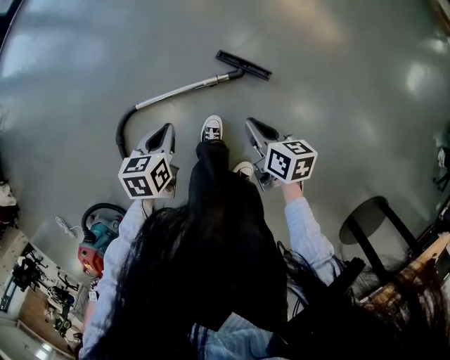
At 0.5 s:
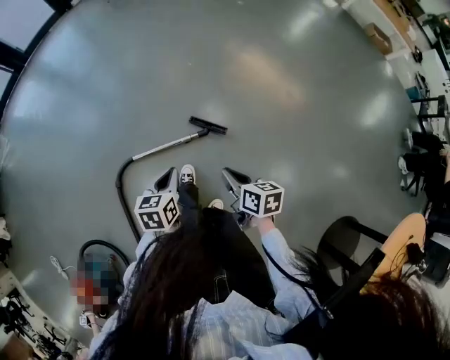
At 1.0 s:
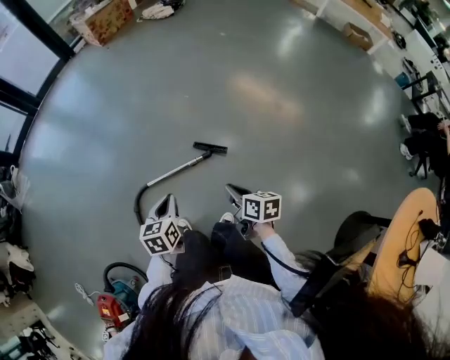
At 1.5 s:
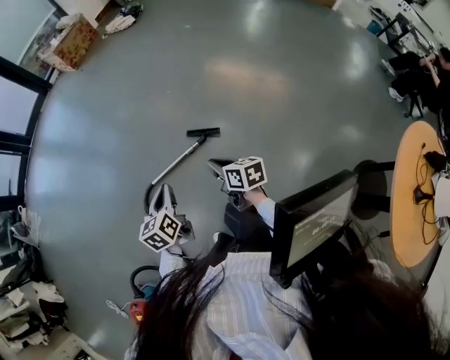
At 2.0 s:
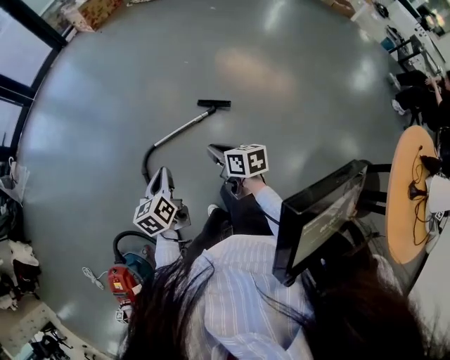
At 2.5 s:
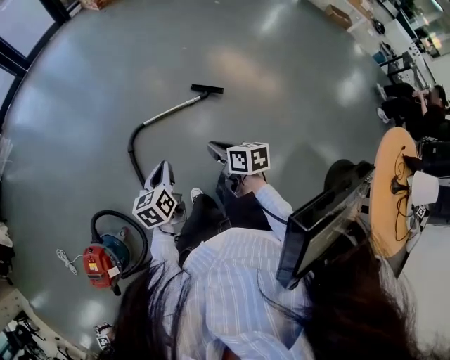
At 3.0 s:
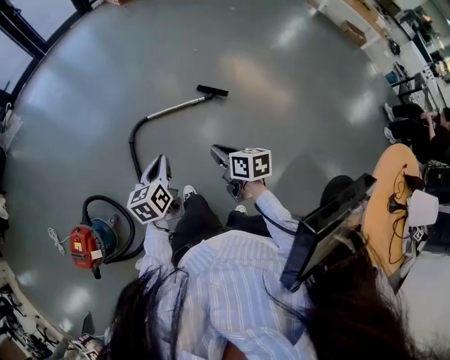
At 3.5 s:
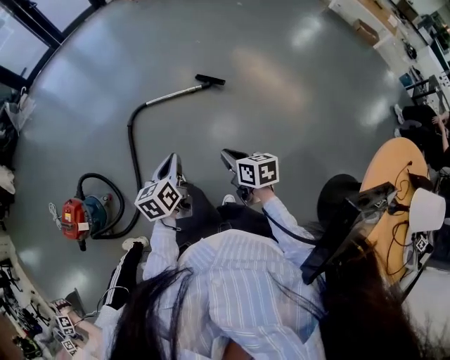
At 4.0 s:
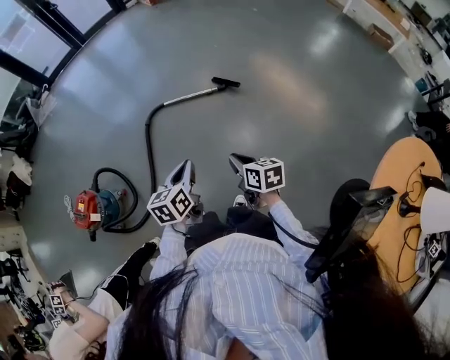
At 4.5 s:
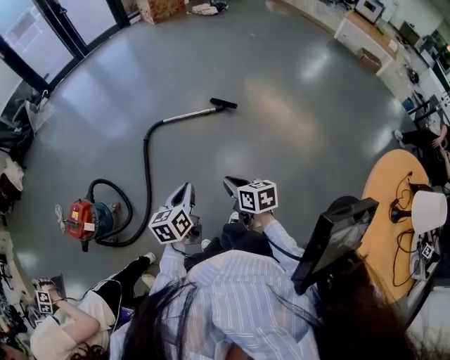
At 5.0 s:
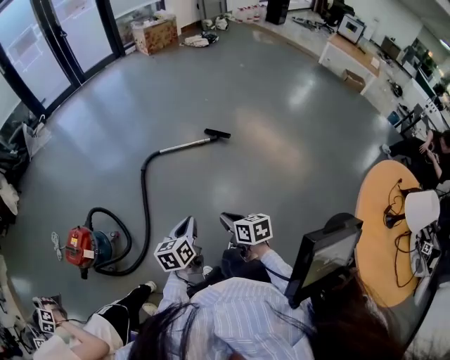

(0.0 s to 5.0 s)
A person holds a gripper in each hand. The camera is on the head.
0.0 s - 2.5 s: The two grippers travel together, backward and to the left, approximately 40 cm. Both grippers move upward, approximately 40 cm. The left gripper rotates approximately 20 degrees.
2.5 s - 5.0 s: The pair of grippers is taken backward, roughly 40 cm.

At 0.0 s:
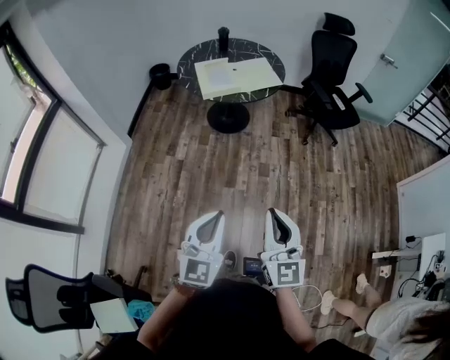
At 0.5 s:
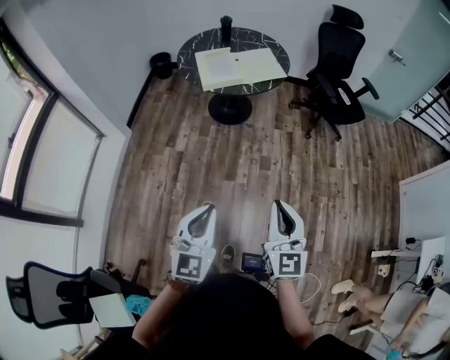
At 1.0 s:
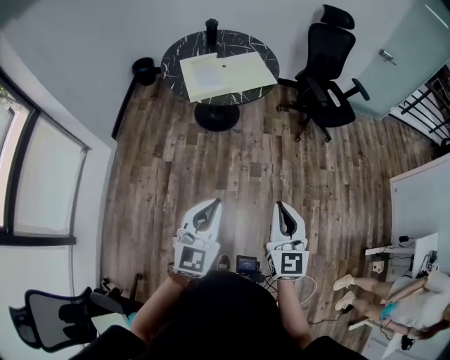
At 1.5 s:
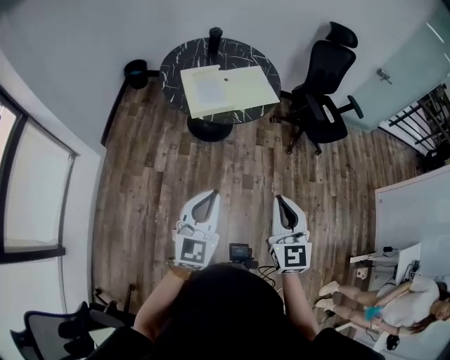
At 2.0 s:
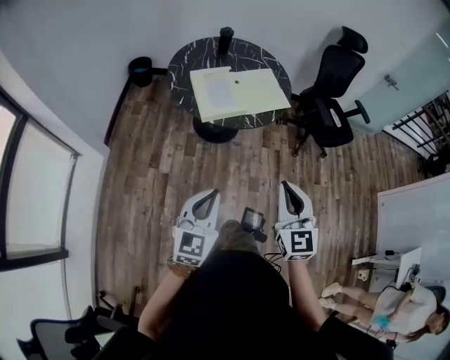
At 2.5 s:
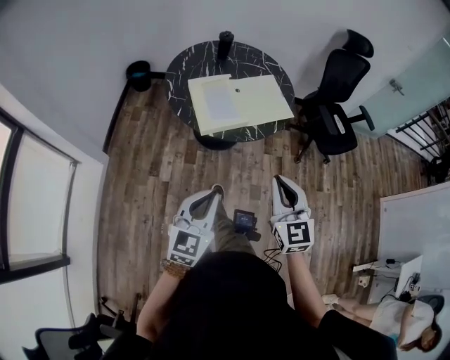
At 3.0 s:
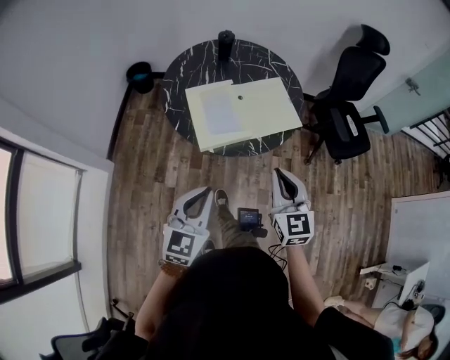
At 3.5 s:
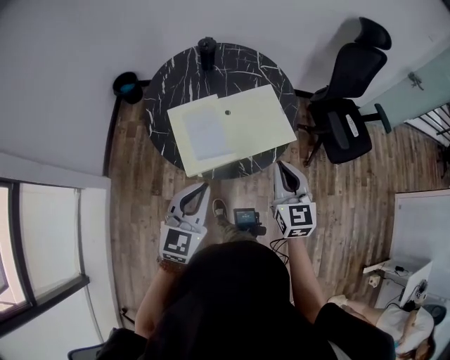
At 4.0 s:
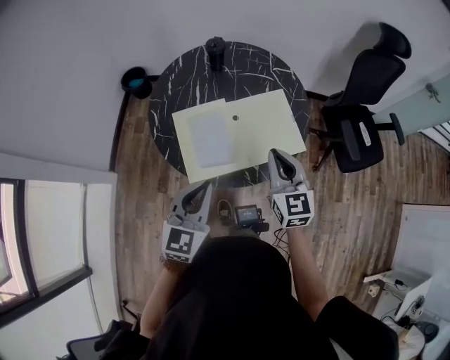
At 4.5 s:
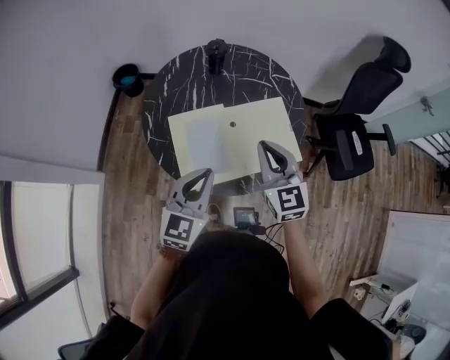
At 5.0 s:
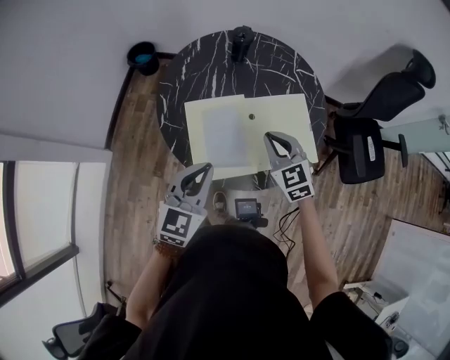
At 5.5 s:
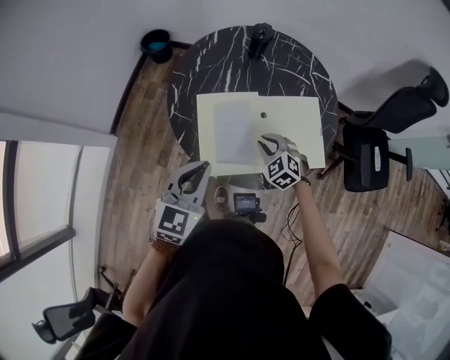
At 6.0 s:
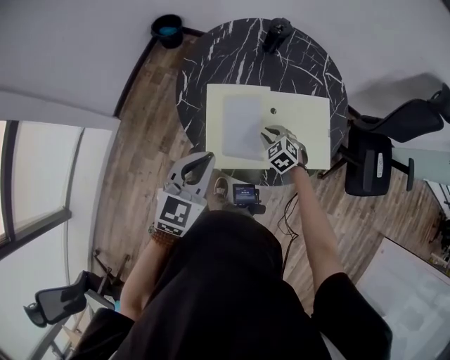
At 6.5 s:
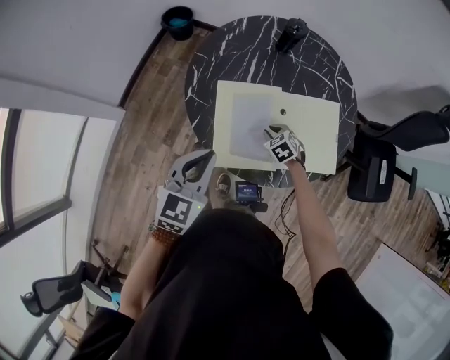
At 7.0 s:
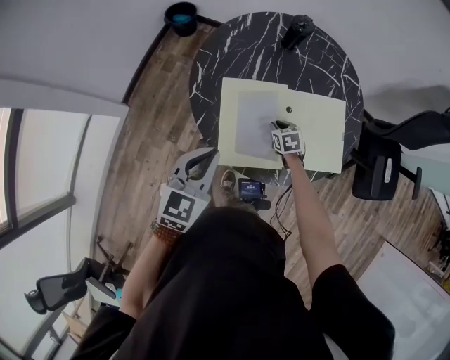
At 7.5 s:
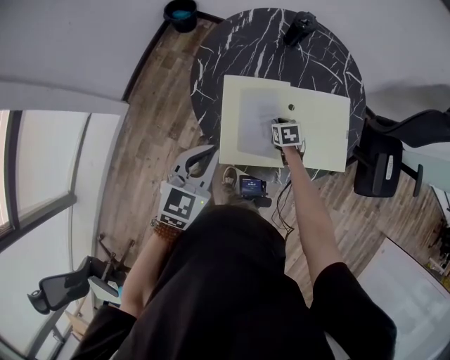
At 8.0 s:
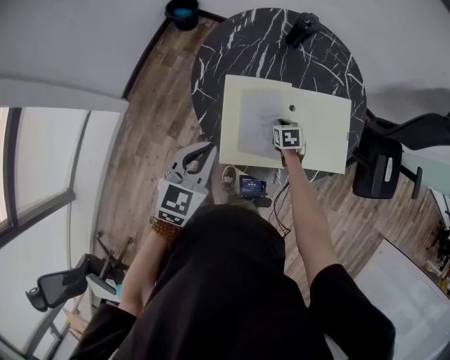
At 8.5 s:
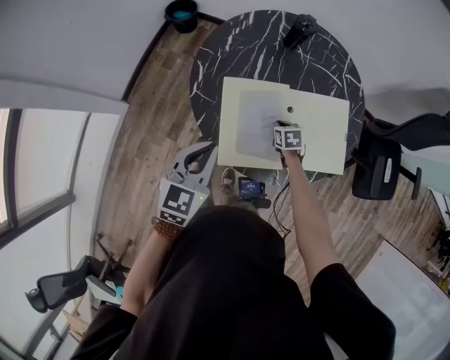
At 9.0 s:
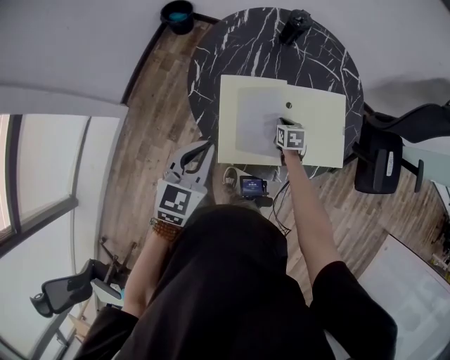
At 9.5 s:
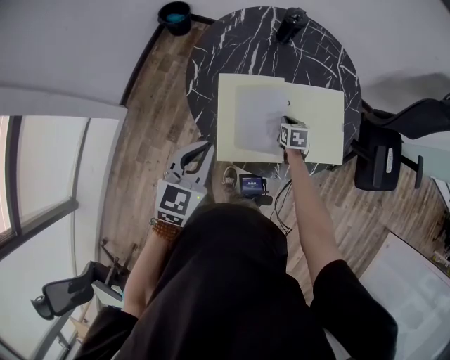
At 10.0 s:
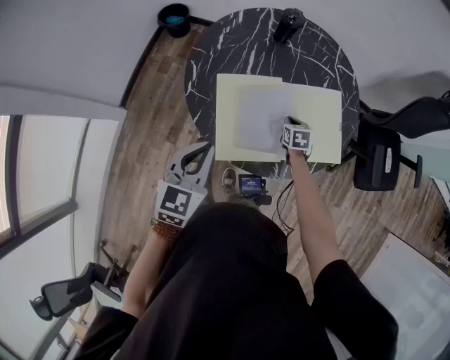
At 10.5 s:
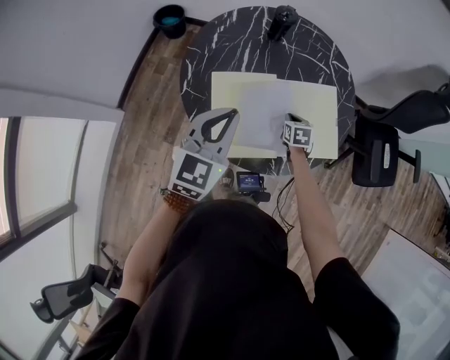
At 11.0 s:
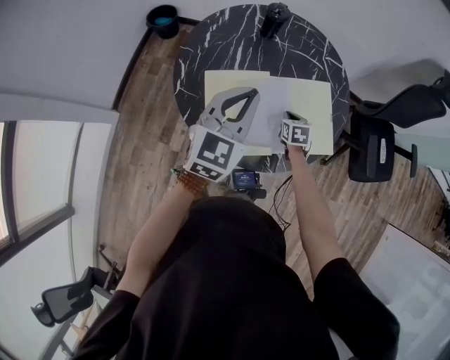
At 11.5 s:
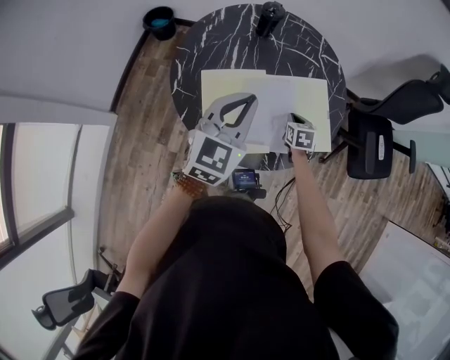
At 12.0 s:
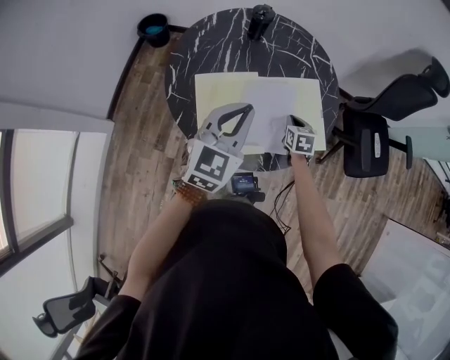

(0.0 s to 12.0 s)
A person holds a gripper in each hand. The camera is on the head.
0.0 s - 2.0 s: The right gripper moves forward, some 35 cm. Meanwhile the left gripper heads forward and to the left, covering about 35 cm.
2.0 s - 4.0 s: The two grippers travel together, forward, about 50 cm.
4.0 s - 6.0 s: The left gripper moves to the left, forward and downward, approximately 15 cm; the right gripper heads downward, forward and to the left, covering some 35 cm, and tips its fingers downward by some 40 degrees.
6.0 s - 8.0 s: The right gripper heads downward, covering some 10 cm, and twists roughly 40 degrees clockwise, seen from behind. The left gripper ends up roughly 5 cm from where it was.
8.0 s - 10.0 s: The right gripper is displaced to the right by some 5 cm.
10.0 s - 12.0 s: The right gripper goes roughly 10 cm to the right and upward, while the left gripper is displaced to the right, forward and upward by approximately 15 cm.

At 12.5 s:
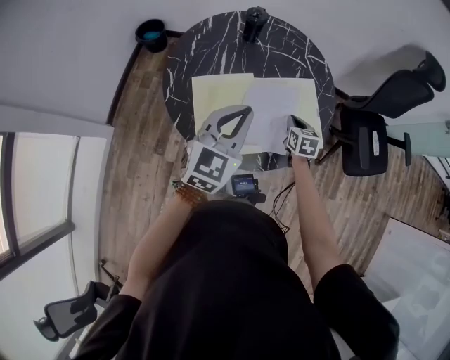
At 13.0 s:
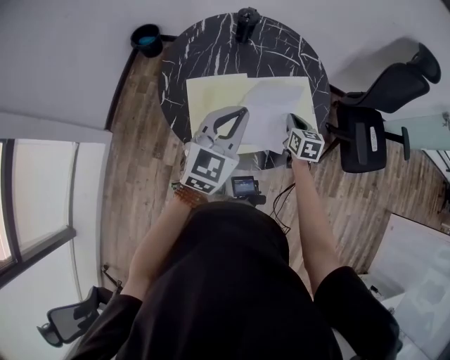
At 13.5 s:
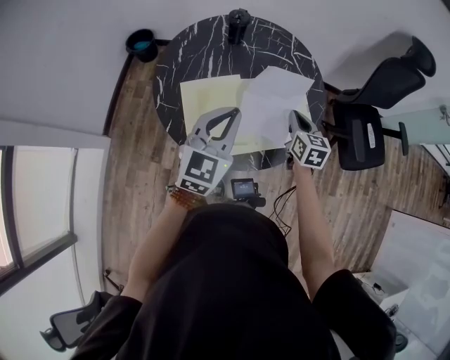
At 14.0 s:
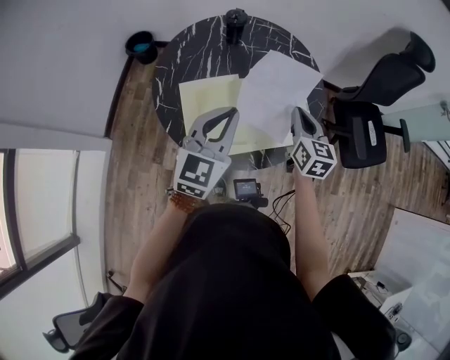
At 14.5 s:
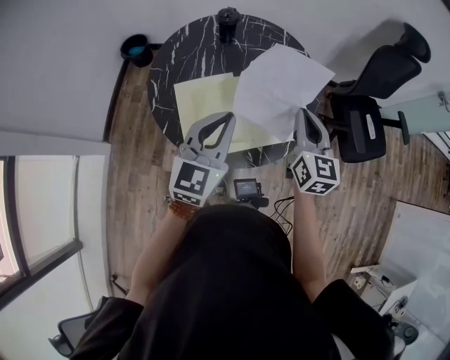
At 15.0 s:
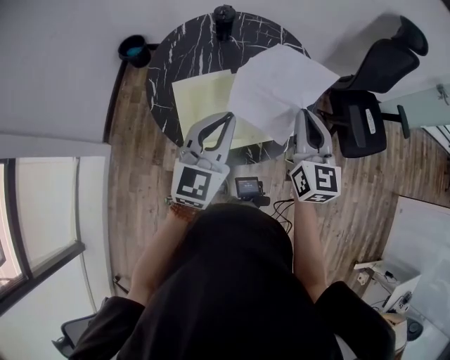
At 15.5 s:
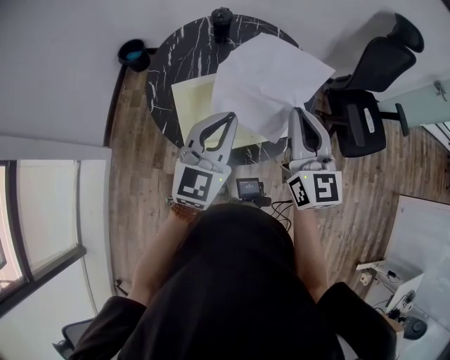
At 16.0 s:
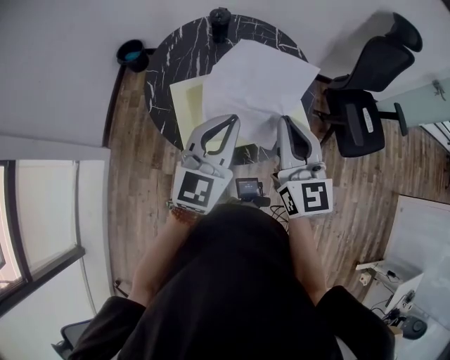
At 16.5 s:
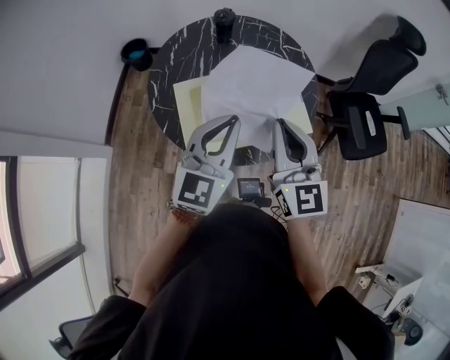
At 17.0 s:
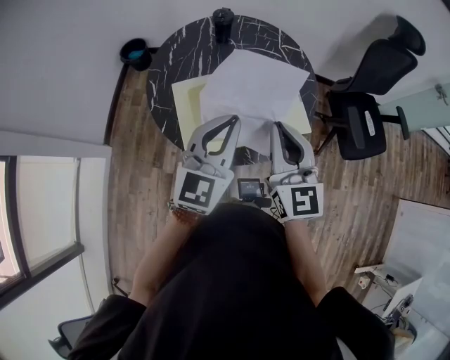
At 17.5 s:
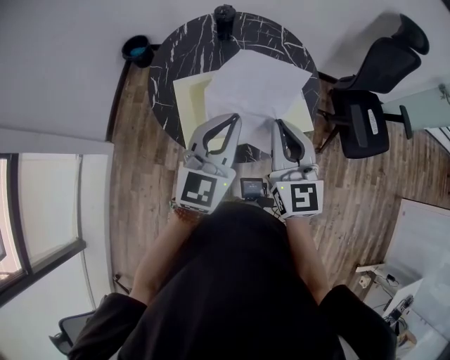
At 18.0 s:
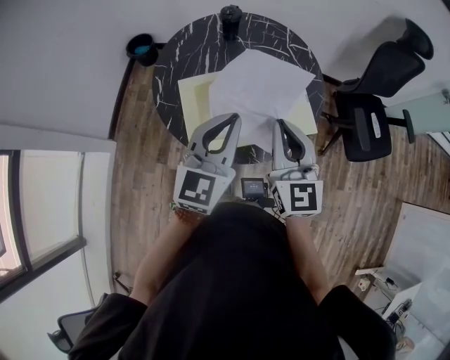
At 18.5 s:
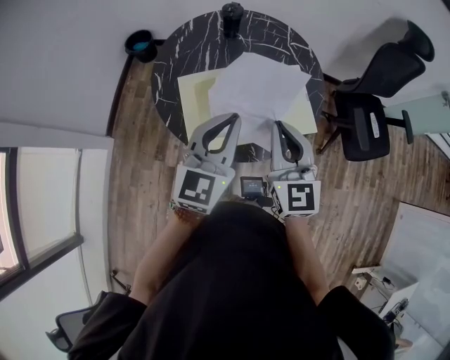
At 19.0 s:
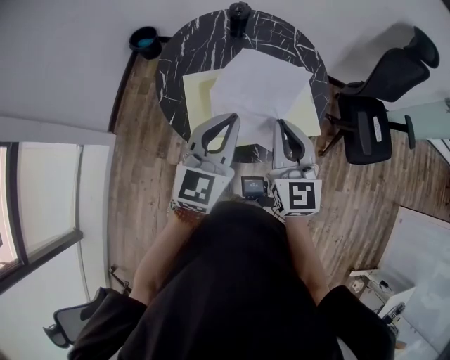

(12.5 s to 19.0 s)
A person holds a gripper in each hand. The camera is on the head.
12.5 s - 14.5 s: The right gripper shifts about 25 cm upward, and points its fingers about 30 degrees further upward.
14.5 s - 17.0 s: The right gripper moves backward, upward and to the left, some 10 cm. Meanwhile the left gripper shifts by approximately 5 cm.
17.0 s - 19.0 s: The grippers move only a little.

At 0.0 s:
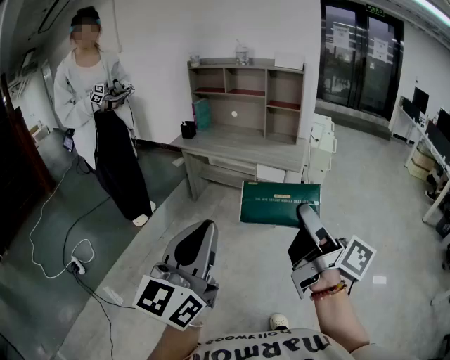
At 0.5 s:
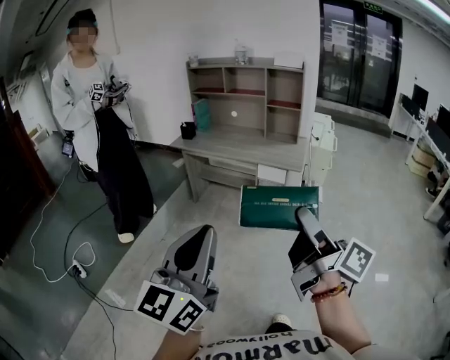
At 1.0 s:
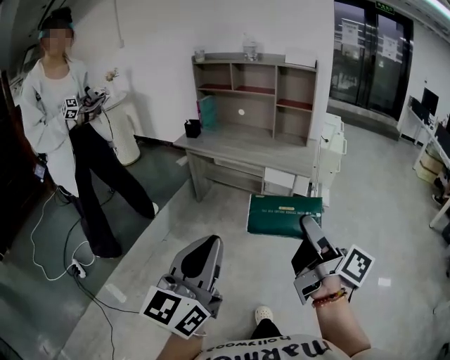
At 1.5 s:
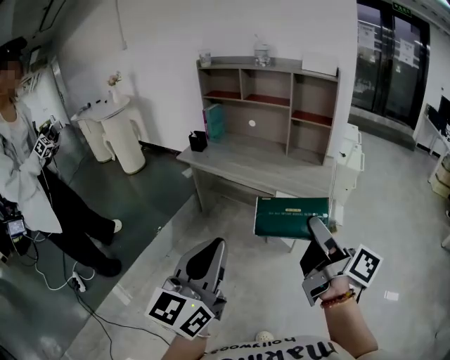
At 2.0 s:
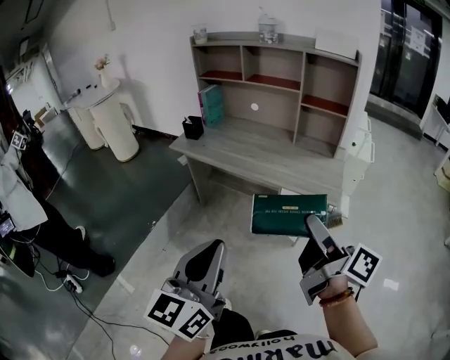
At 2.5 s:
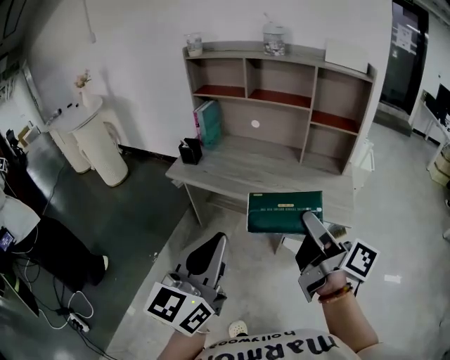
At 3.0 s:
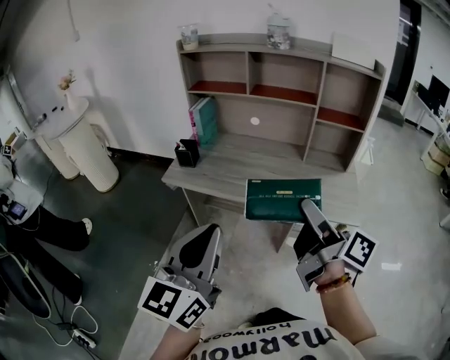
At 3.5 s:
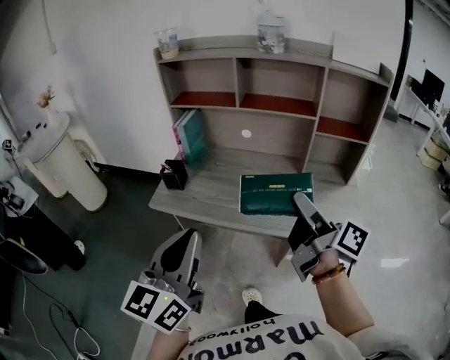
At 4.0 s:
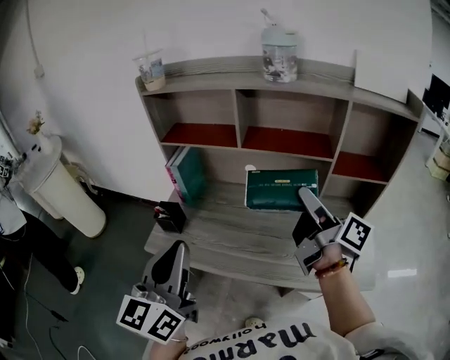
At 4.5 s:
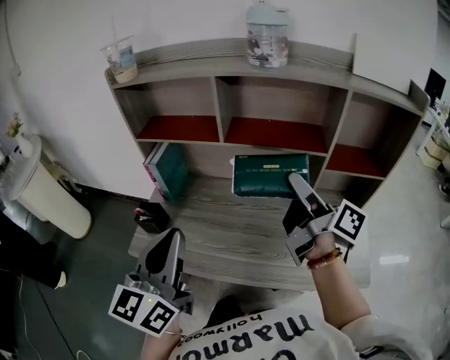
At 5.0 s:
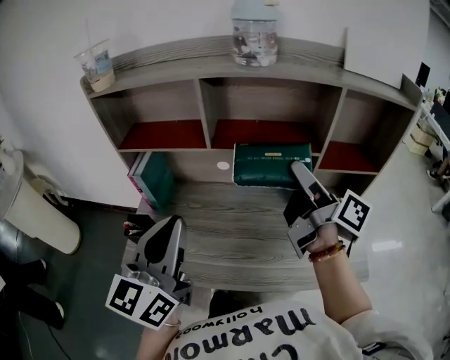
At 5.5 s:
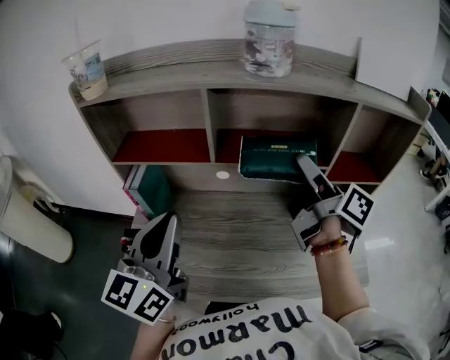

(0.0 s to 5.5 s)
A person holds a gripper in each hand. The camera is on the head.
0.0 s - 2.0 s: The two grippers go roughly 35 cm forward.
2.0 s - 3.5 s: Both grippers move forward and to the left, approximately 40 cm.
3.5 s - 5.5 s: Both grippers travel together forward, some 35 cm.
